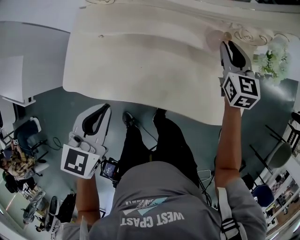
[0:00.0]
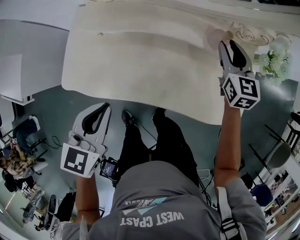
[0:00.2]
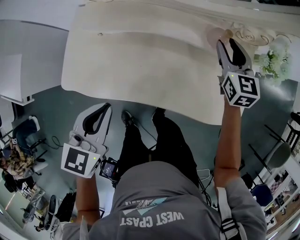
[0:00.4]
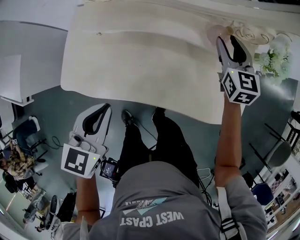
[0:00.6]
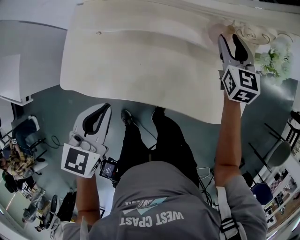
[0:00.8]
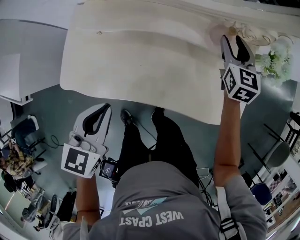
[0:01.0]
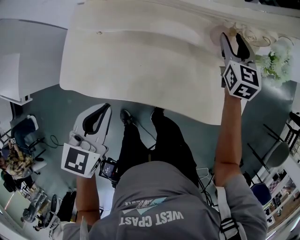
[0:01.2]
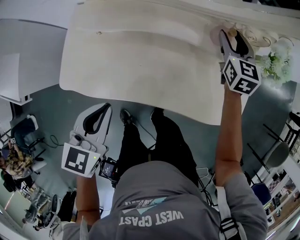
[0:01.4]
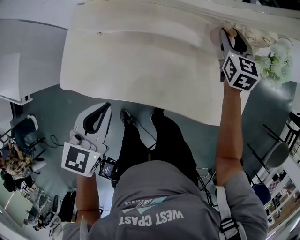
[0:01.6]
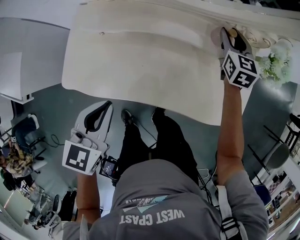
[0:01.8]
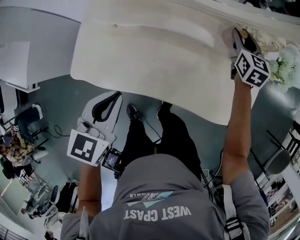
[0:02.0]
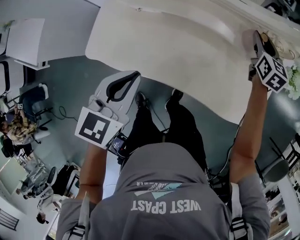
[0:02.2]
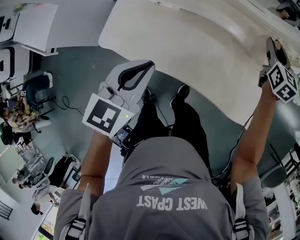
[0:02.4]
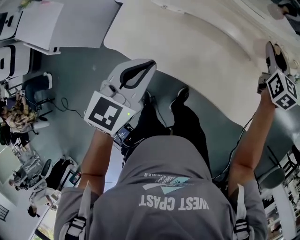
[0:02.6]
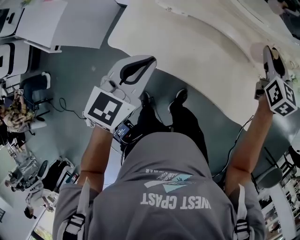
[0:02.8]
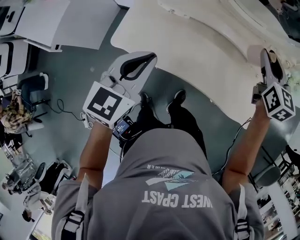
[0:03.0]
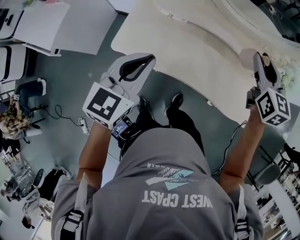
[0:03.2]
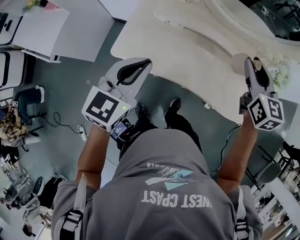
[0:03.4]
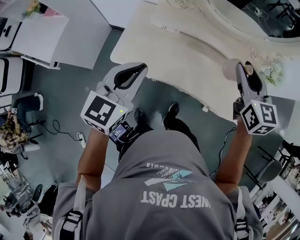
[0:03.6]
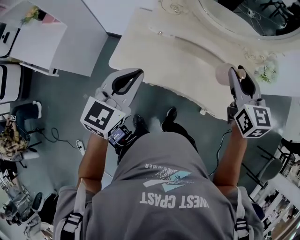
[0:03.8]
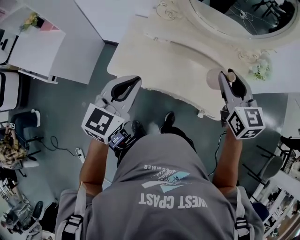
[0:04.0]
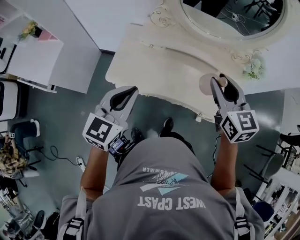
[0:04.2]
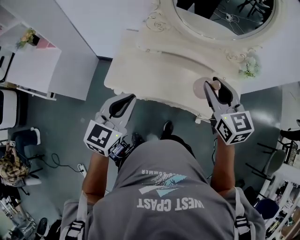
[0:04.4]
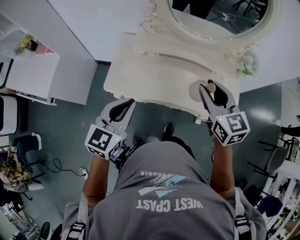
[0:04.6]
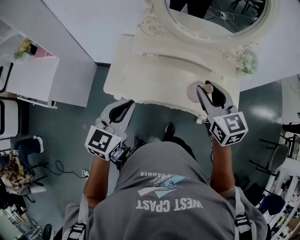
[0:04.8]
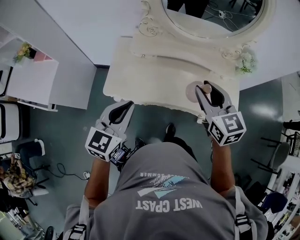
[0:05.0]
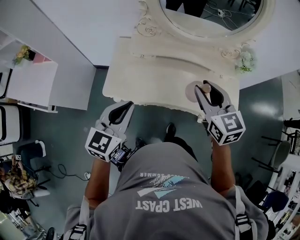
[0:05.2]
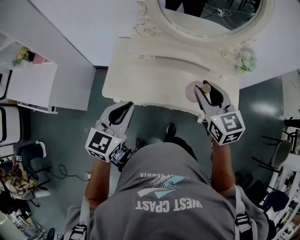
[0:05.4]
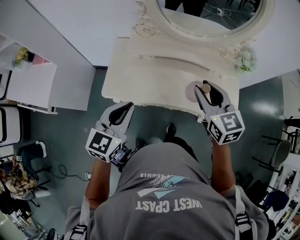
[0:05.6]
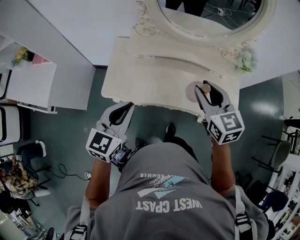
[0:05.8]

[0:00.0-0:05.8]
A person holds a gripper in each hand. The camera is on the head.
0:00.0 to 0:01.4: The right gripper opens its fingers.
0:01.4 to 0:02.8: The right gripper travels upward and backward by approximately 15 cm. Meanwhile the left gripper heads upward, covering about 10 cm.
0:02.8 to 0:04.4: The right gripper is displaced backward, to the left and upward by approximately 30 cm. The left gripper travels backward, upward and to the left by about 15 cm.
0:04.4 to 0:05.8: The grippers move only a little.

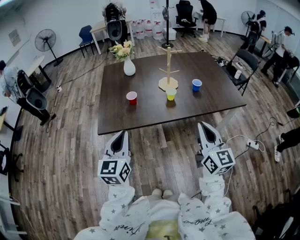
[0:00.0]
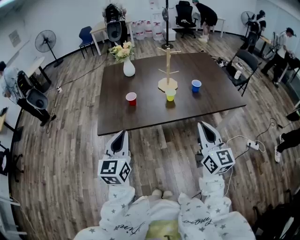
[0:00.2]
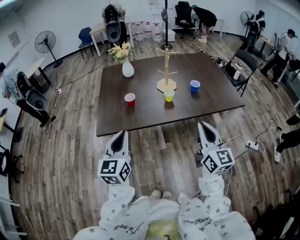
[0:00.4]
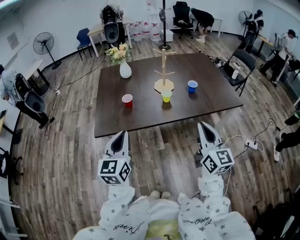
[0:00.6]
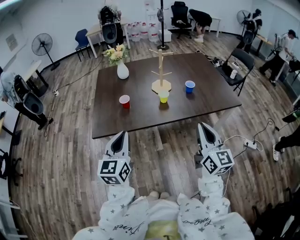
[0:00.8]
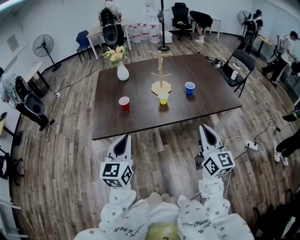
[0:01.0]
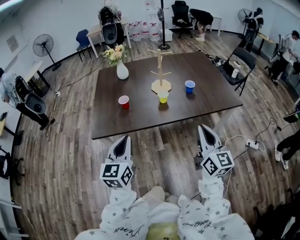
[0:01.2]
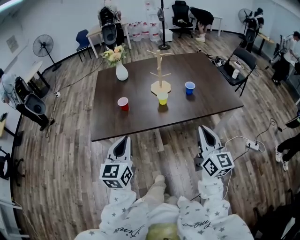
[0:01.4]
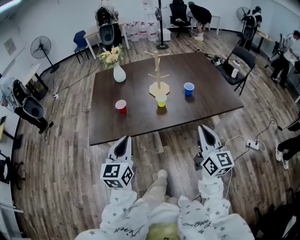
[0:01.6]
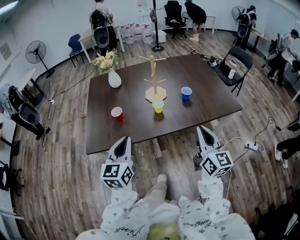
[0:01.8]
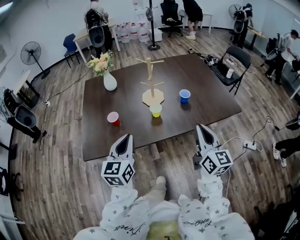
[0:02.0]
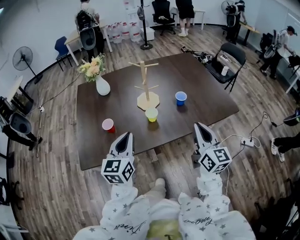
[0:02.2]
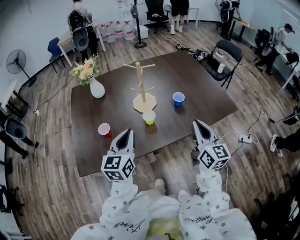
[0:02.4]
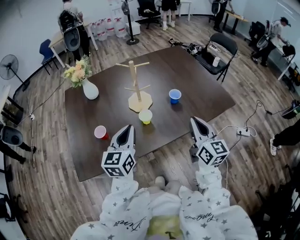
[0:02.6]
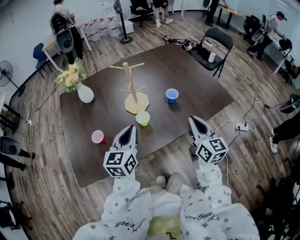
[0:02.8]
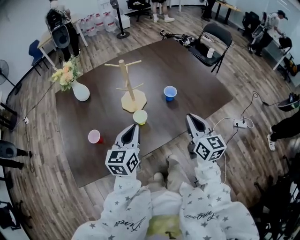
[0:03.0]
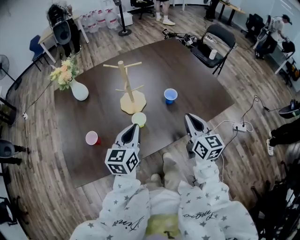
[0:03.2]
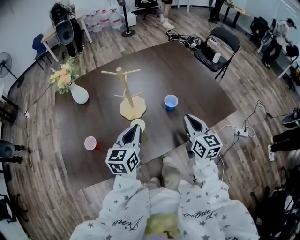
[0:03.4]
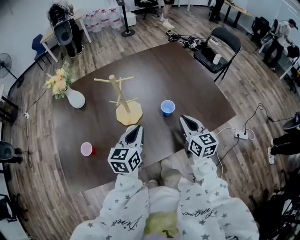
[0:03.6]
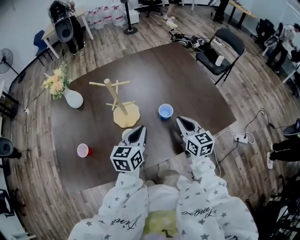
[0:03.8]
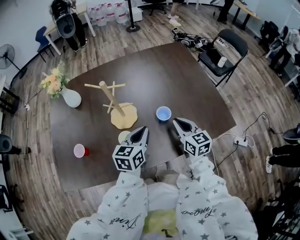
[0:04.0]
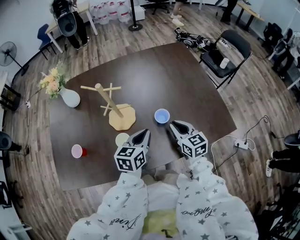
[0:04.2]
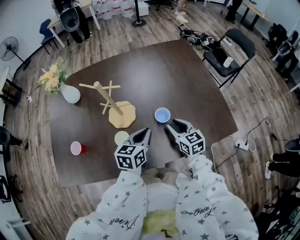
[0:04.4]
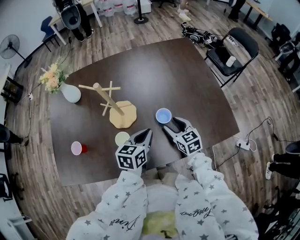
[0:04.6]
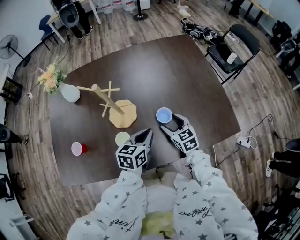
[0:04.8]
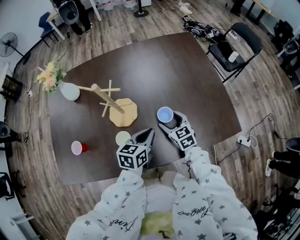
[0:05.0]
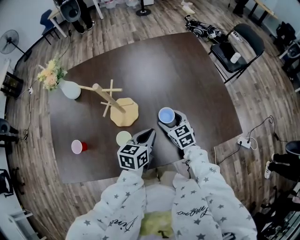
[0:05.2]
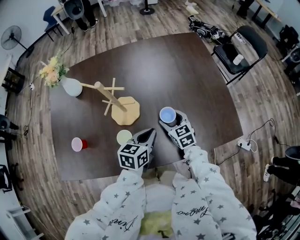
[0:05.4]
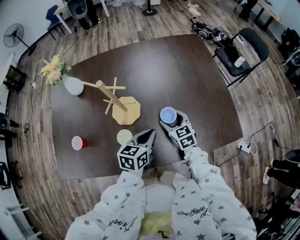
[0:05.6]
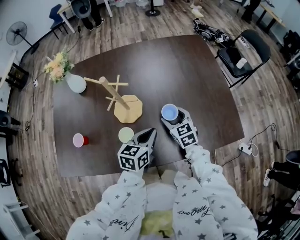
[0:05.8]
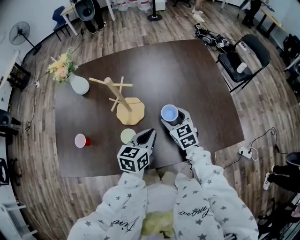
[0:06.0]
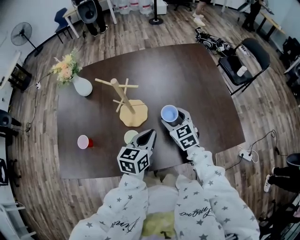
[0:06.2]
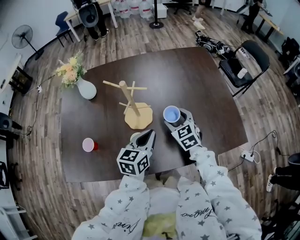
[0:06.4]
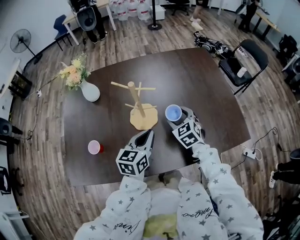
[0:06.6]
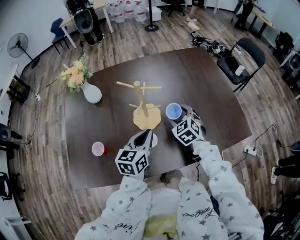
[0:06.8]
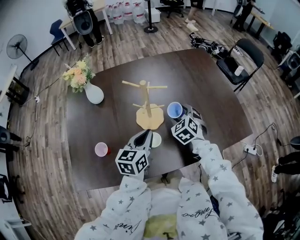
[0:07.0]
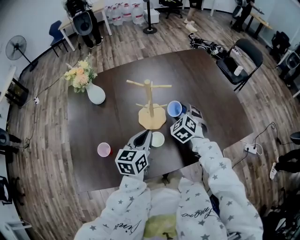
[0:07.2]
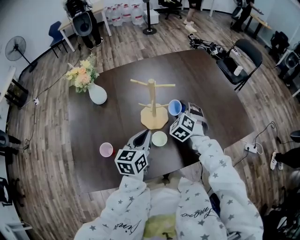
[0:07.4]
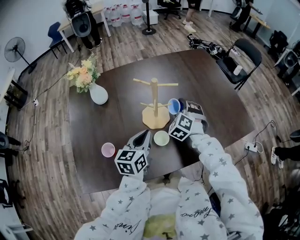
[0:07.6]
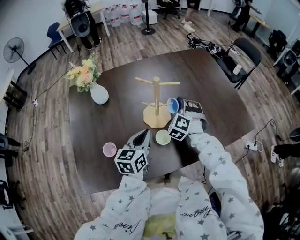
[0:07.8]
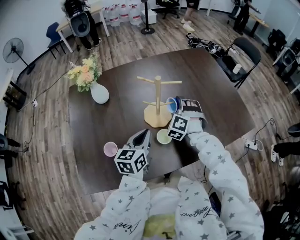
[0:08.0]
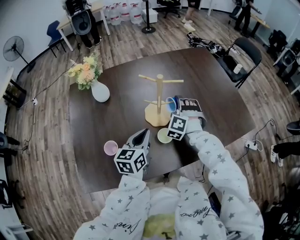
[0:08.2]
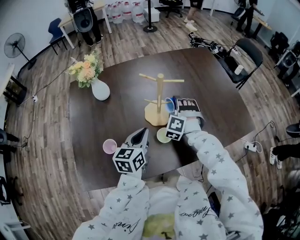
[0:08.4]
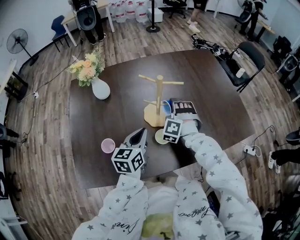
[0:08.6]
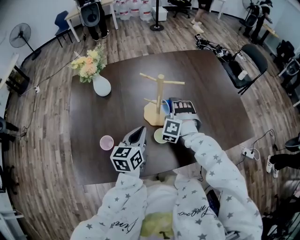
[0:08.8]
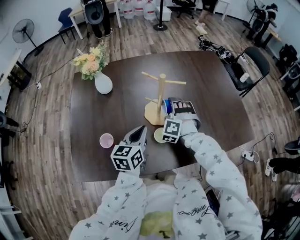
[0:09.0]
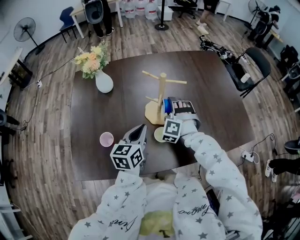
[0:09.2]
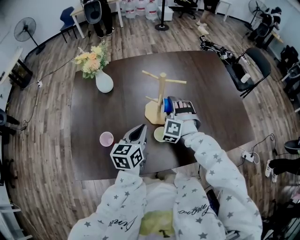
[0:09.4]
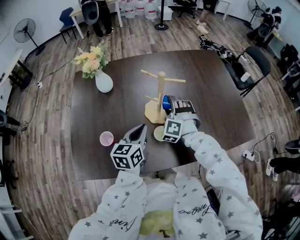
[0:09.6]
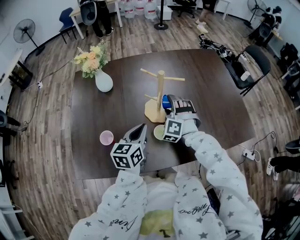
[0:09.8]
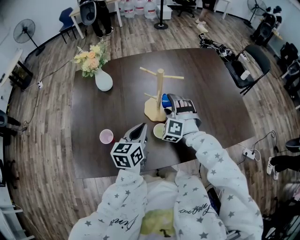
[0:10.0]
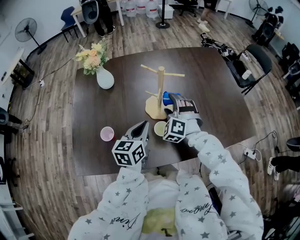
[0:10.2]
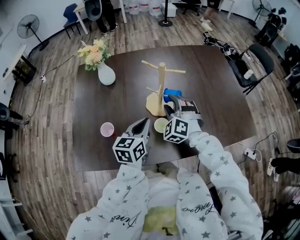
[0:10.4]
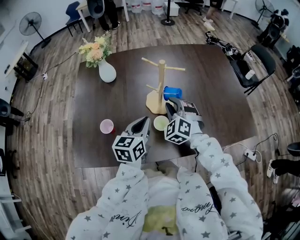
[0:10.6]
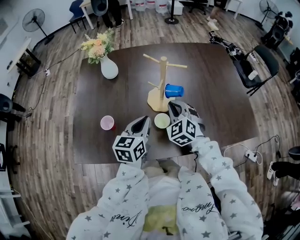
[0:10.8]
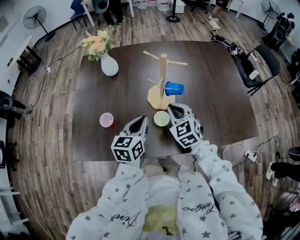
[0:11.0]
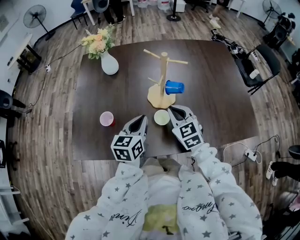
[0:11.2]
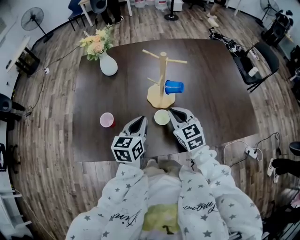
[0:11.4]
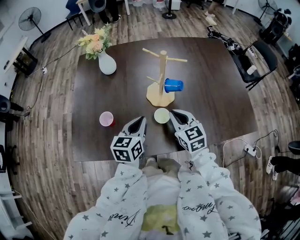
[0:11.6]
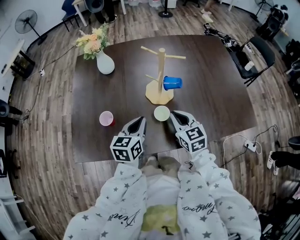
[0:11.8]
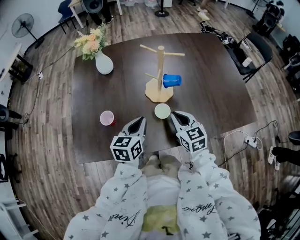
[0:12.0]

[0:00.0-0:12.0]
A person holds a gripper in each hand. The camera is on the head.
0:00.0 to 0:01.6: The grippers both shift to the right by about 10 cm.
0:01.6 to 0:03.0: The two grippers go approximately 20 cm forward. The left gripper rotates approximately 20 degrees.
0:03.0 to 0:04.4: The right gripper shifts roughly 20 cm forward and downward, and changes its angle by roughly 30 degrees. Meanwhile the left gripper is displaced to the right, forward and downward by roughly 20 cm.
0:04.4 to 0:06.0: The right gripper shifts approximately 10 cm forward and to the left, and opens.
0:06.0 to 0:07.6: The left gripper is displaced to the left by approximately 15 cm. The right gripper goes approximately 10 cm to the left, and rotates roughly 50 degrees.
0:07.6 to 0:09.0: The right gripper changes place by approximately 5 cm, and changes its angle by roughly 30 degrees.
0:09.0 to 0:10.4: The right gripper moves roughly 5 cm, and rotates roughly 20 degrees.
0:10.4 to 0:12.0: The right gripper moves backward, about 10 cm, twists roughly 60 degrees clockwise, seen from behind, and closes up, while the left gripper ends up some 5 cm from where it was.

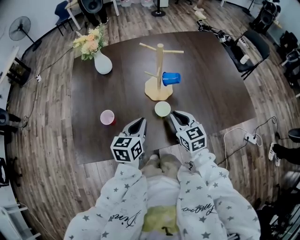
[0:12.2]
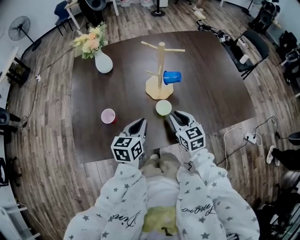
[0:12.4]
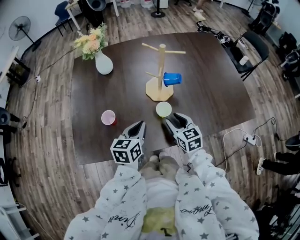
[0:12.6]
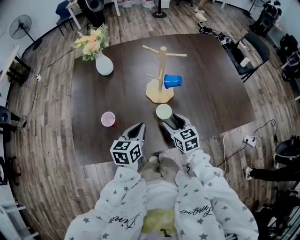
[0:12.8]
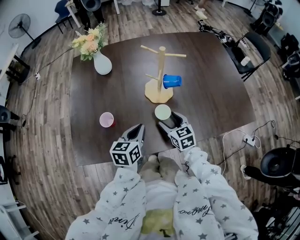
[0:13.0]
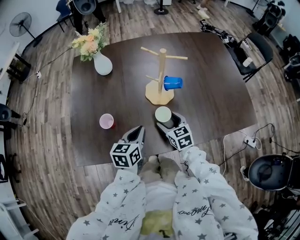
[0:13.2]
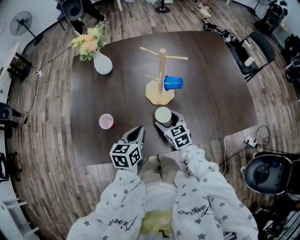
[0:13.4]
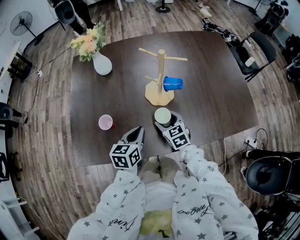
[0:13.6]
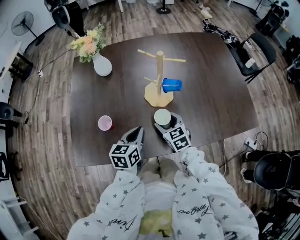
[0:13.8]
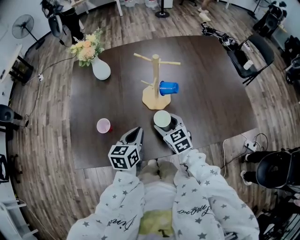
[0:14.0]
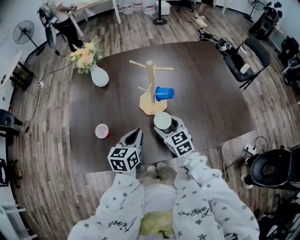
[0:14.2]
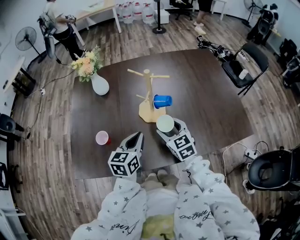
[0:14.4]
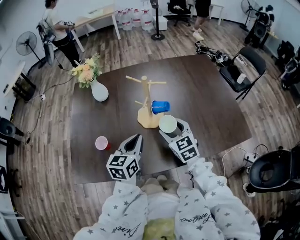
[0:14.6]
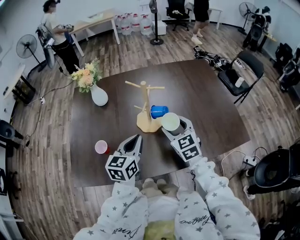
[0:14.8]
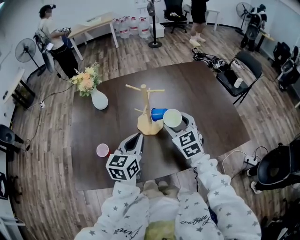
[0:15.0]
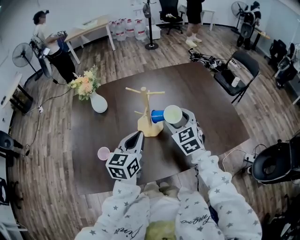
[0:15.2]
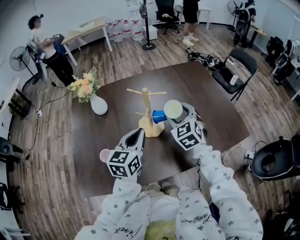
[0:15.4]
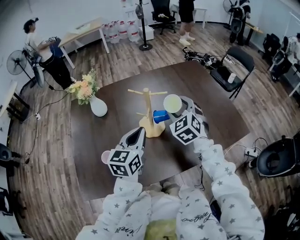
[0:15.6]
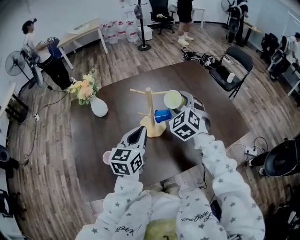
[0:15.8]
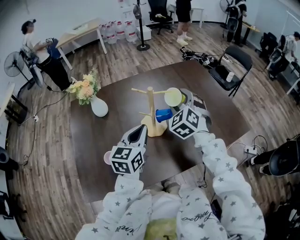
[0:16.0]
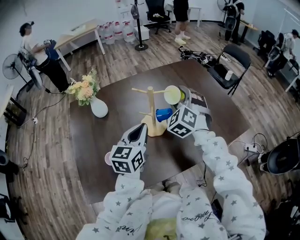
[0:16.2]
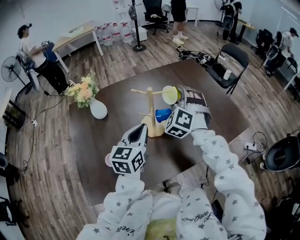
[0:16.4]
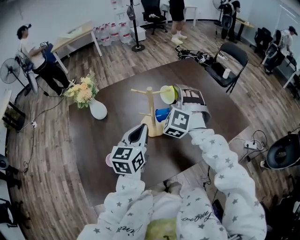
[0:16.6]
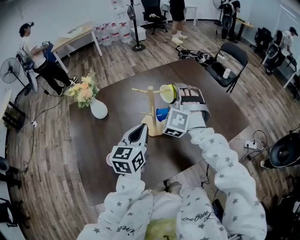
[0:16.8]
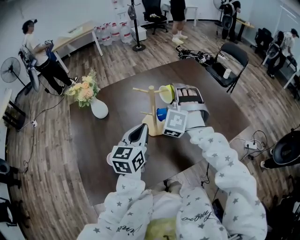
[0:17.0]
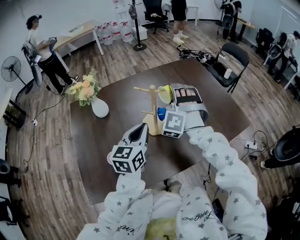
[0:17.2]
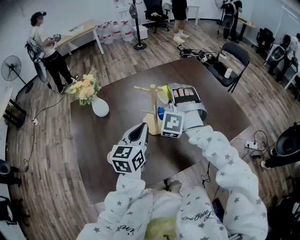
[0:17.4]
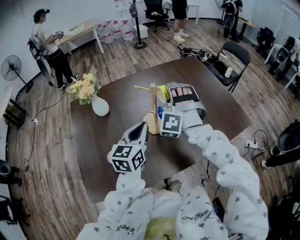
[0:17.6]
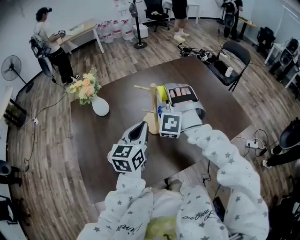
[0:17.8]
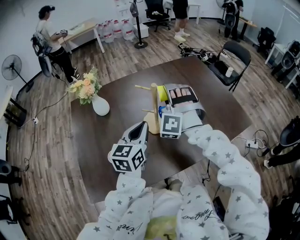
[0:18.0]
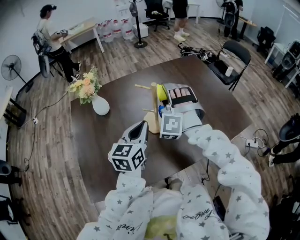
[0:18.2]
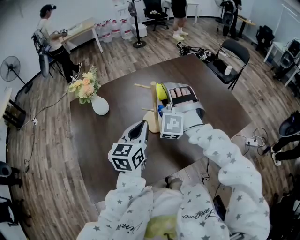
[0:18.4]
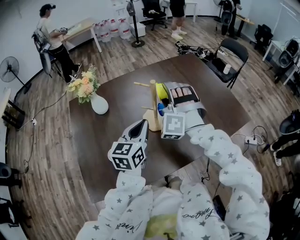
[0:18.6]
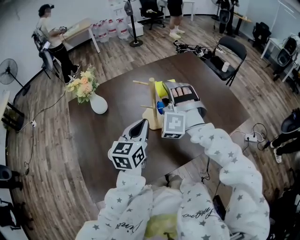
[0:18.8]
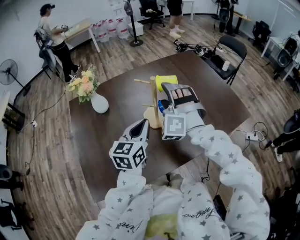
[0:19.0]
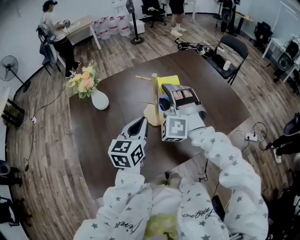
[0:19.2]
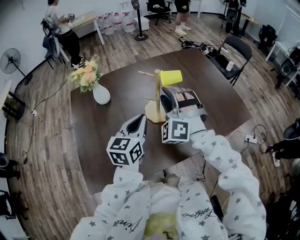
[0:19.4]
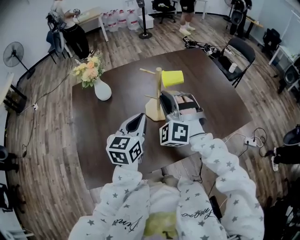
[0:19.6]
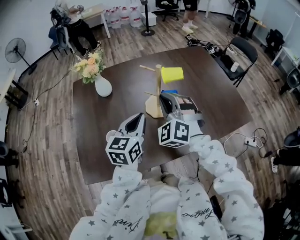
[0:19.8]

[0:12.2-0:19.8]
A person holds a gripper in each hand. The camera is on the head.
0:12.2 to 0:13.8: The right gripper heads downward, covering some 5 cm, and opens its fingers.
0:13.8 to 0:15.2: The right gripper shifts about 20 cm upward, to the right and forward, and changes its angle by approximately 20 degrees; the left gripper is displaced upward and forward by some 15 cm, and turns by approximately 20 degrees.
0:15.2 to 0:16.8: The right gripper is displaced upward and forward by some 10 cm, and rolls counterclockwise, seen from behind, by roughly 50 degrees.
0:16.8 to 0:18.2: The grippers make only small movements.
0:18.2 to 0:19.8: The right gripper shifts about 10 cm backward, rotates roughly 30 degrees, and closes up.
